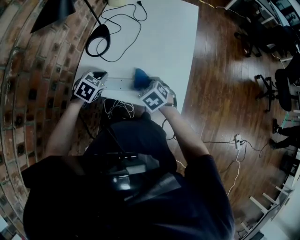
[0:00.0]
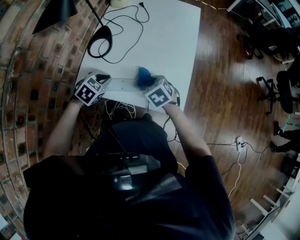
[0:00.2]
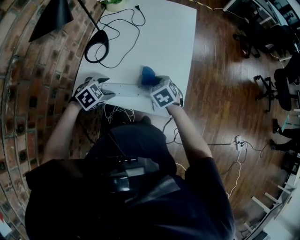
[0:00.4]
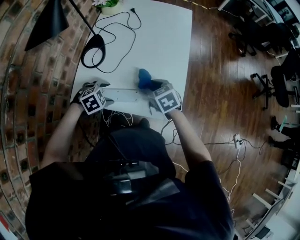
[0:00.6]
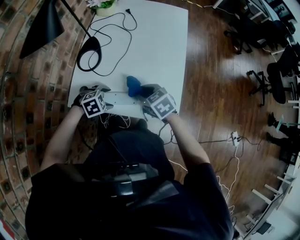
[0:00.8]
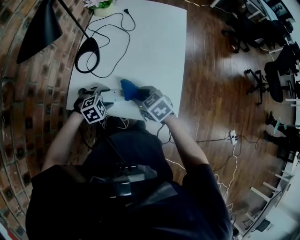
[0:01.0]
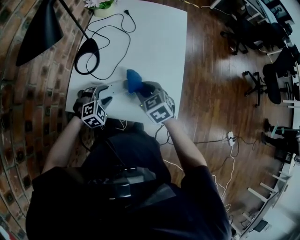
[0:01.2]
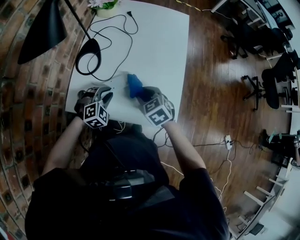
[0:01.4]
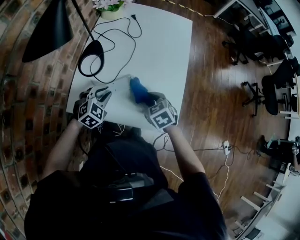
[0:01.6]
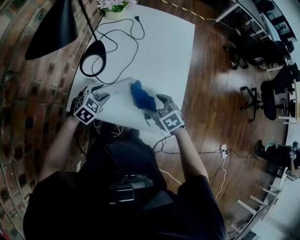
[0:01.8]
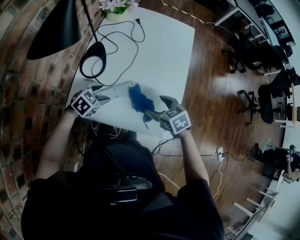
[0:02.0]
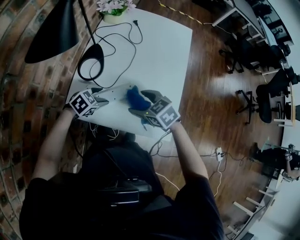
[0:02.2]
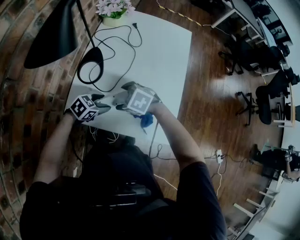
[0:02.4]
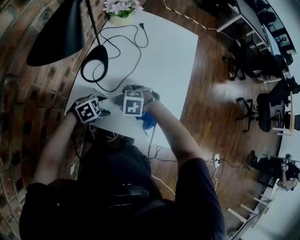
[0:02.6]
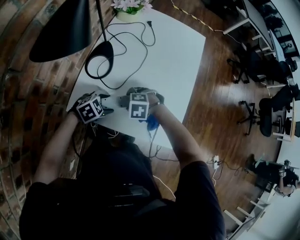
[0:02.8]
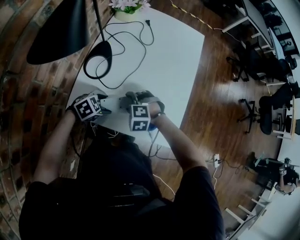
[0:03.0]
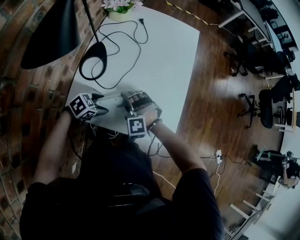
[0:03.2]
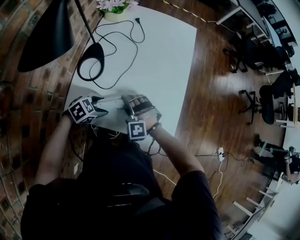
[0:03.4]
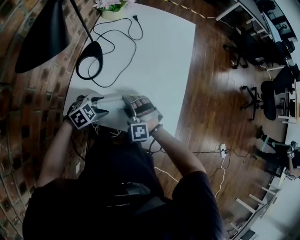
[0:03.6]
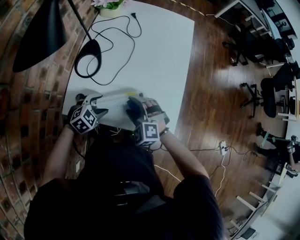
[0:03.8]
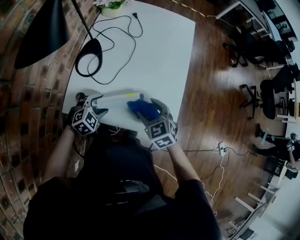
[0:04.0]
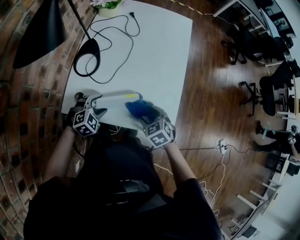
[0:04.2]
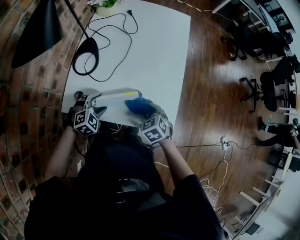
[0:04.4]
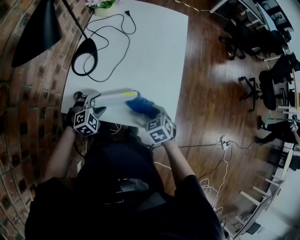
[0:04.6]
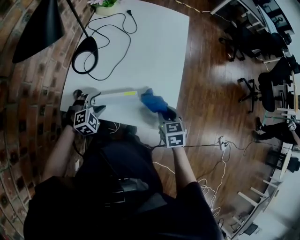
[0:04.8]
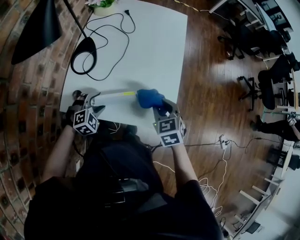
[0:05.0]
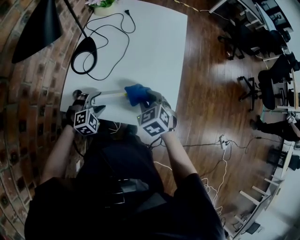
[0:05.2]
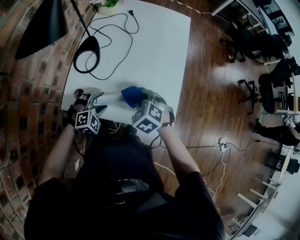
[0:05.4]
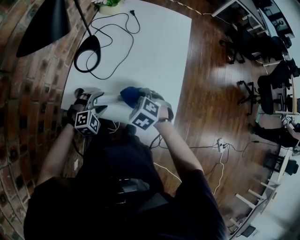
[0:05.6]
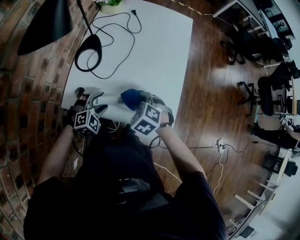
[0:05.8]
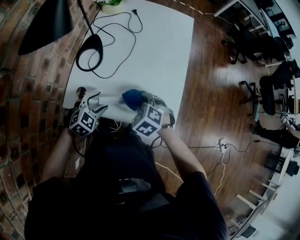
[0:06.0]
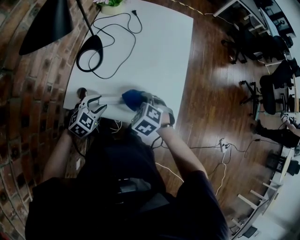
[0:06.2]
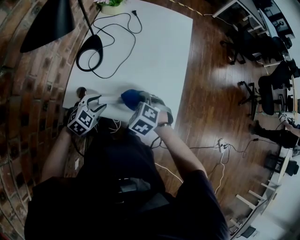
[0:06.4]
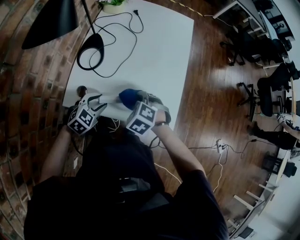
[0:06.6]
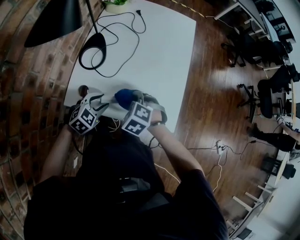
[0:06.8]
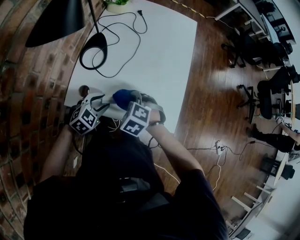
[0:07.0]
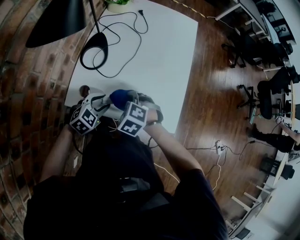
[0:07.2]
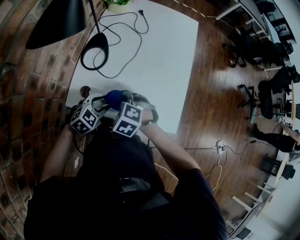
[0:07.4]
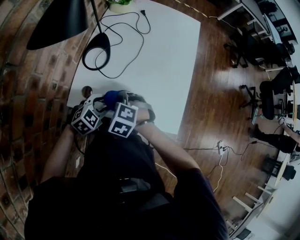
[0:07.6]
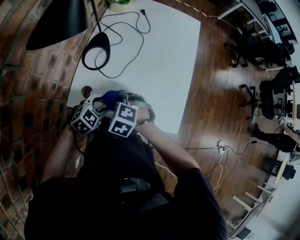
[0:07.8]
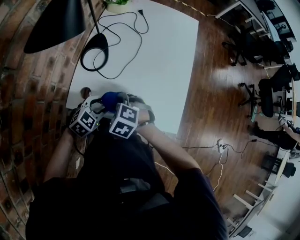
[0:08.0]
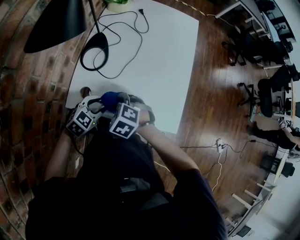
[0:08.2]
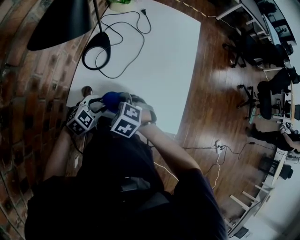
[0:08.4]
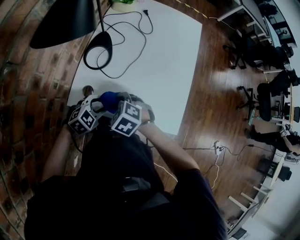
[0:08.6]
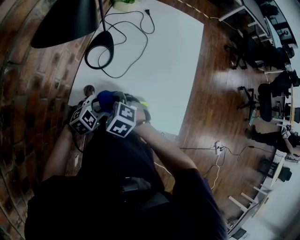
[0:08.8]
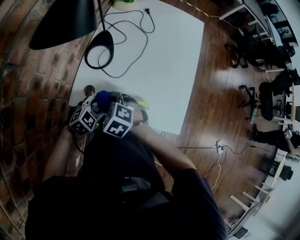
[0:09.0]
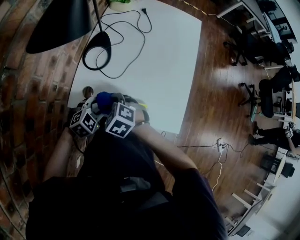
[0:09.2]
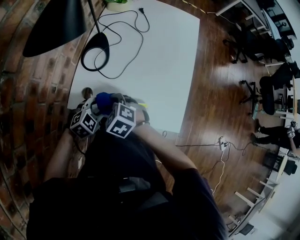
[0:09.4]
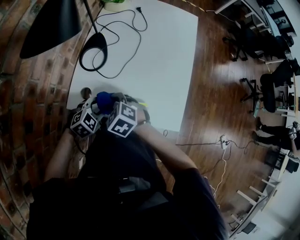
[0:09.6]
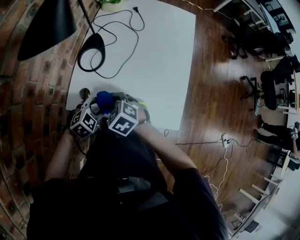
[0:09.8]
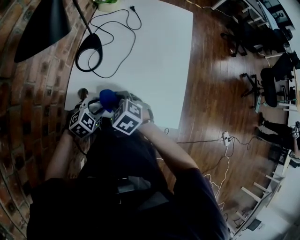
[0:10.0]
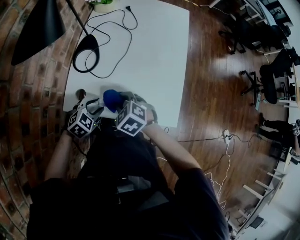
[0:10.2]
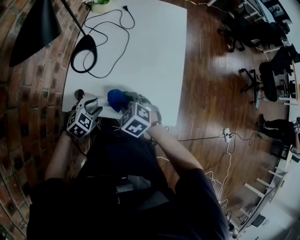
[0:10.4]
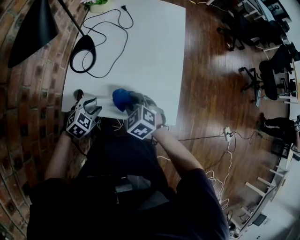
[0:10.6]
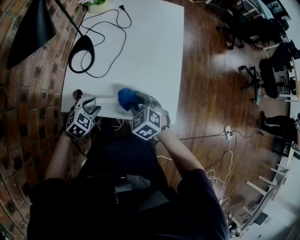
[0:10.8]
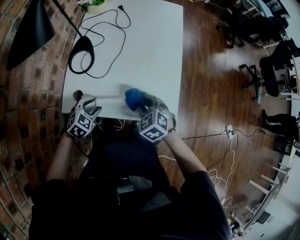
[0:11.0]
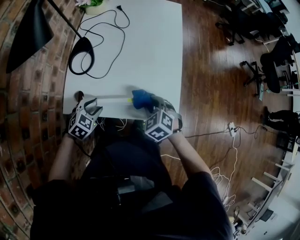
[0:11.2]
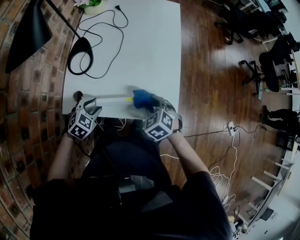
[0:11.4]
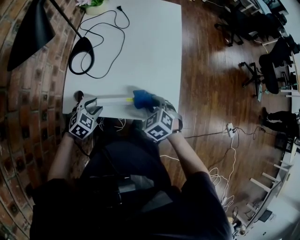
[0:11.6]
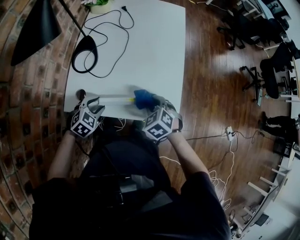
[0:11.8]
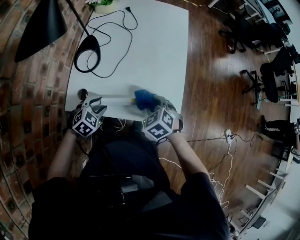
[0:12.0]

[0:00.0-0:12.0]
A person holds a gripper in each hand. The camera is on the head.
0:00.0 to 0:01.6: The left gripper turns by about 20 degrees, and opens, then closes again.
0:01.6 to 0:03.0: The left gripper moves approximately 5 cm, swivels roughly 30 degrees, and opens its fingers. The right gripper ends up approximately 10 cm from where it was, and rolls counterclockwise, seen from behind, by approximately 60 degrees.
0:03.0 to 0:04.4: The right gripper goes upward and returns, roughly 10 cm each way, and rotates around the line of its fingers by approximately 60 degrees, clockwise from behind. The left gripper rotates approximately 30 degrees.
0:04.4 to 0:06.0: The right gripper travels upward and to the left by approximately 10 cm, and rotates some 20 degrees.
0:06.0 to 0:07.6: The right gripper travels to the left by about 10 cm.
0:07.6 to 0:09.0: The right gripper shifts approximately 5 cm to the left.
0:09.0 to 0:10.4: The right gripper moves to the right, about 10 cm.
0:10.4 to 0:12.0: The right gripper goes roughly 10 cm to the right.

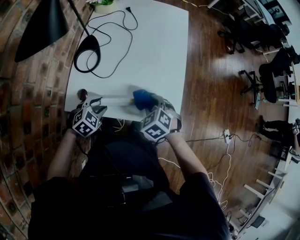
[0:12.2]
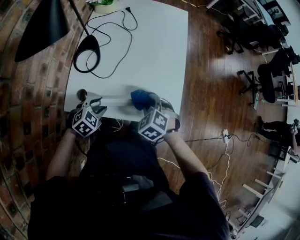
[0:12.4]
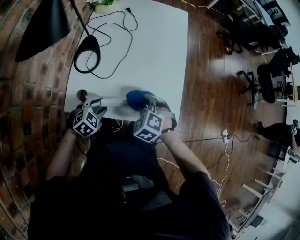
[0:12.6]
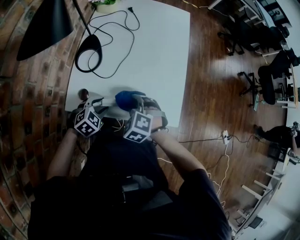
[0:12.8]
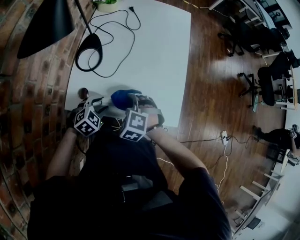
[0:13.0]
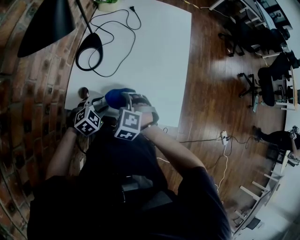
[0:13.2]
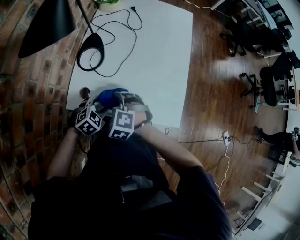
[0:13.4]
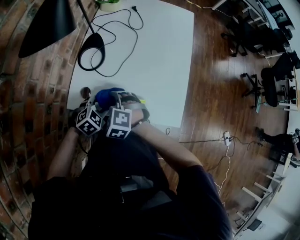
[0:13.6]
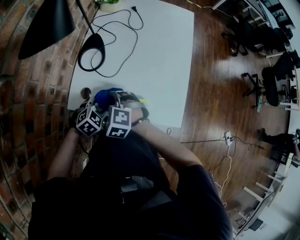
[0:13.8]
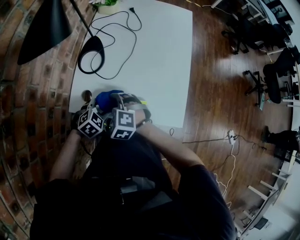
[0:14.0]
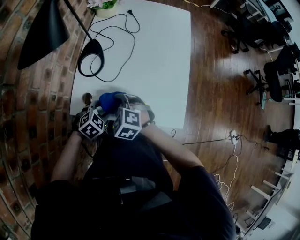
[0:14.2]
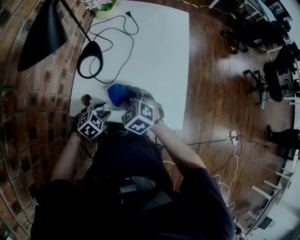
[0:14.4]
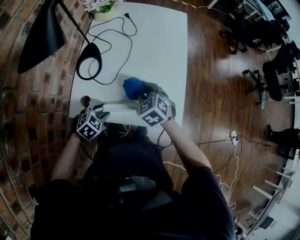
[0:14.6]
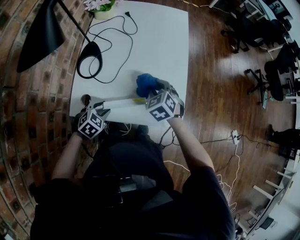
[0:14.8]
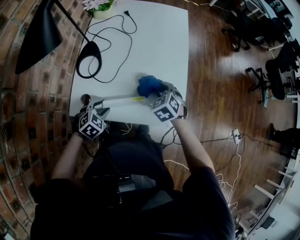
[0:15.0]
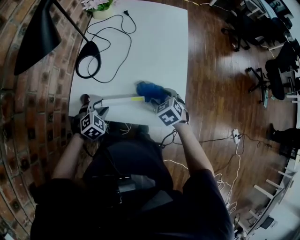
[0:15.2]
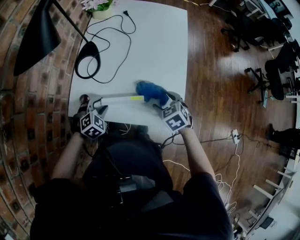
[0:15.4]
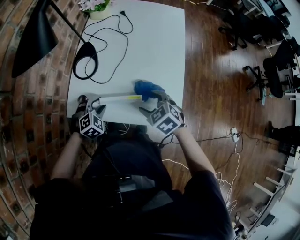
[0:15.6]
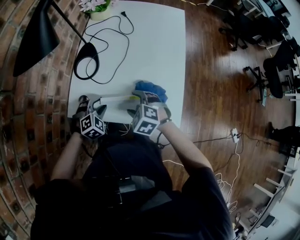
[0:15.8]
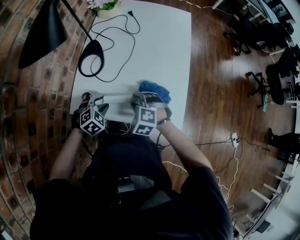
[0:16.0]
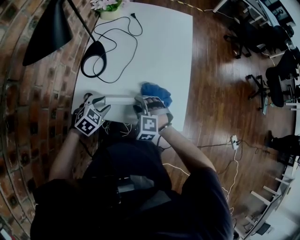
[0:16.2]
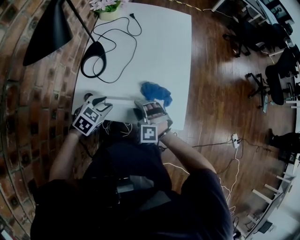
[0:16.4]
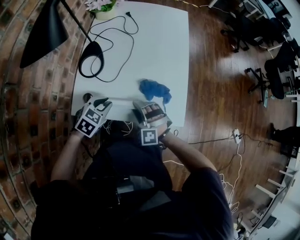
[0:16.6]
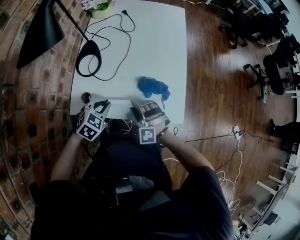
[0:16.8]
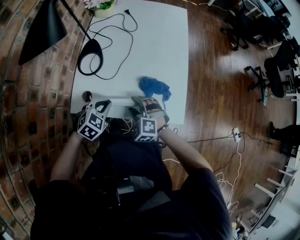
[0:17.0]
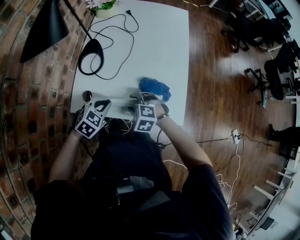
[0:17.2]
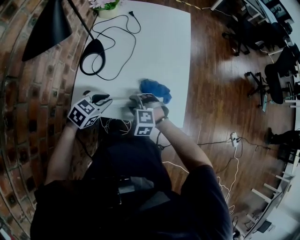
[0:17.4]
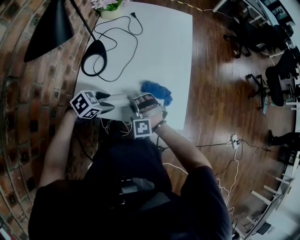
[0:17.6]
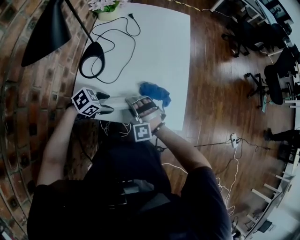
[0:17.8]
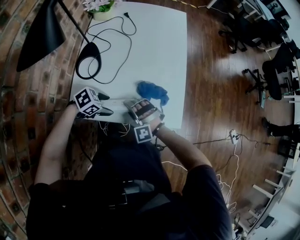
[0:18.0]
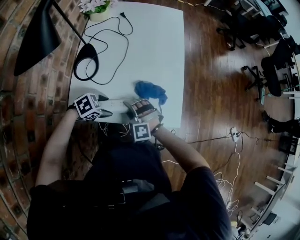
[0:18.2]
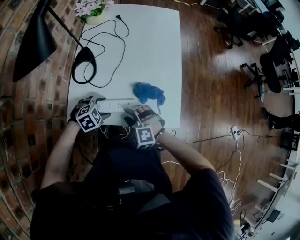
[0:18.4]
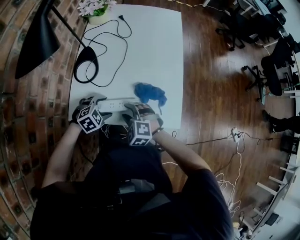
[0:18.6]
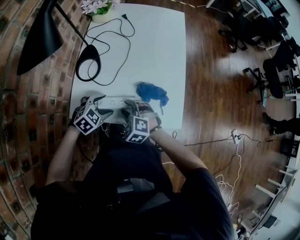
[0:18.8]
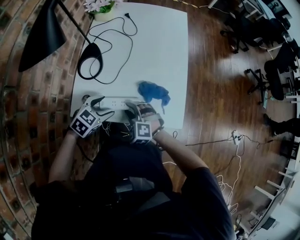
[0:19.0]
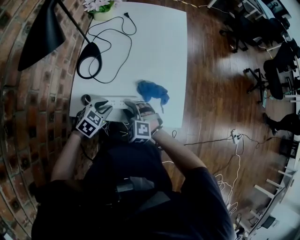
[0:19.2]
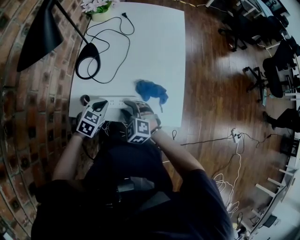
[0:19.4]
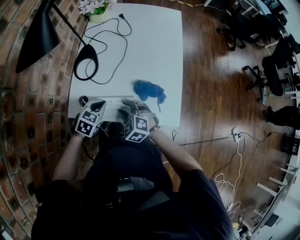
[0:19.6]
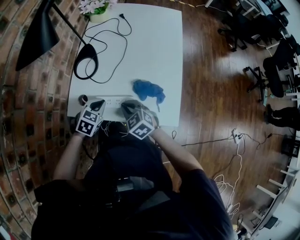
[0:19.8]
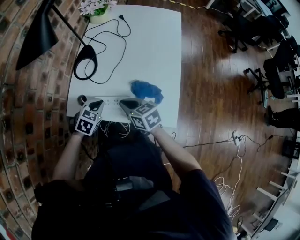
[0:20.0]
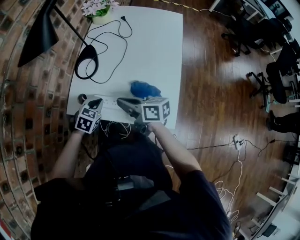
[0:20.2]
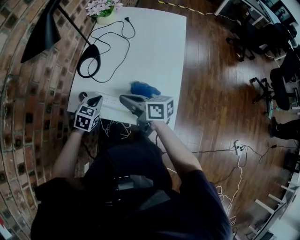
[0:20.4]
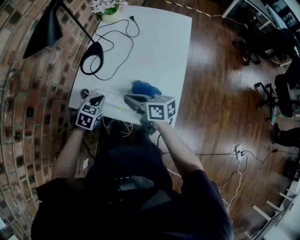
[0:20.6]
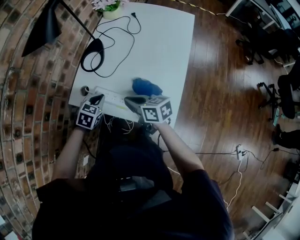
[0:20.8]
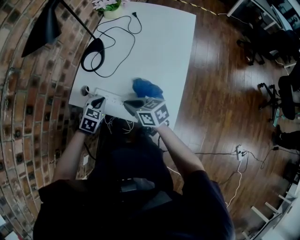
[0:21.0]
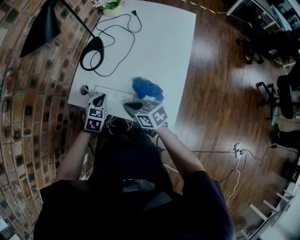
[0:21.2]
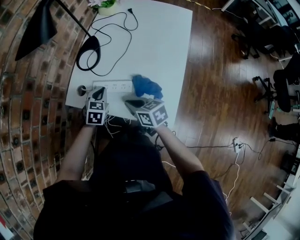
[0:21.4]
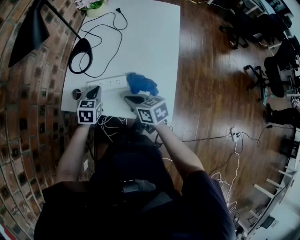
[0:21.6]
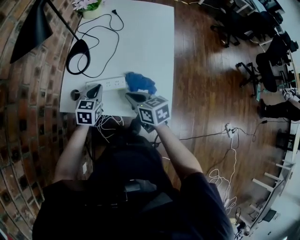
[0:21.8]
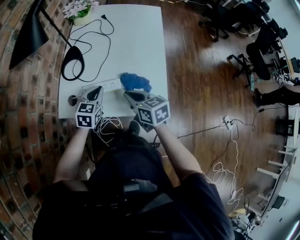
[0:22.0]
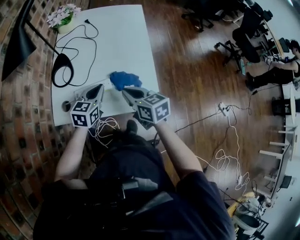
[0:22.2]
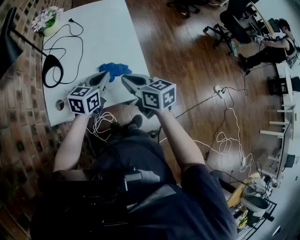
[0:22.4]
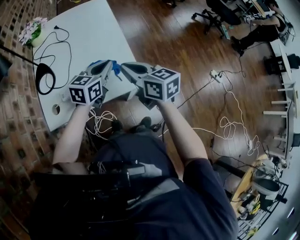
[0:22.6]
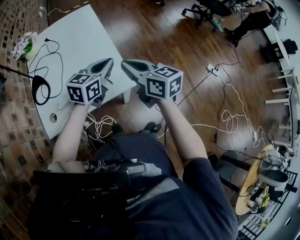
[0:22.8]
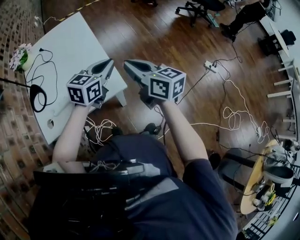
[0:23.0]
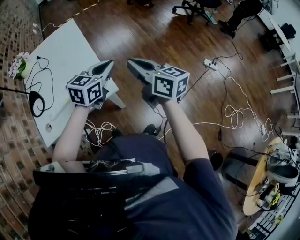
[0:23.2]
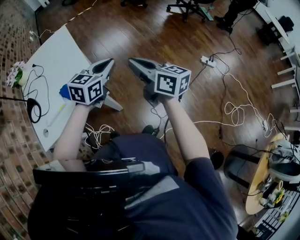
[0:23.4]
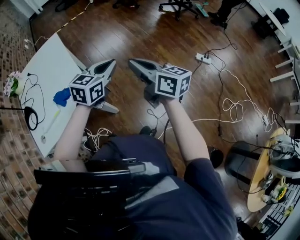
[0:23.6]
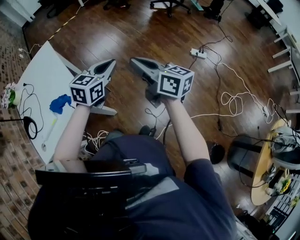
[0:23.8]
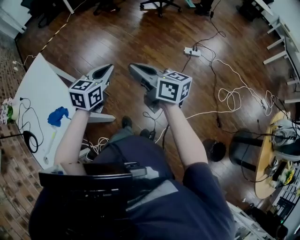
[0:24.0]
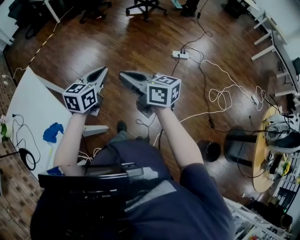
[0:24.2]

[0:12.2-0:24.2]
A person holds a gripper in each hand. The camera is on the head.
0:12.2 to 0:13.8: The right gripper goes roughly 20 cm to the left, and changes its angle by about 30 degrees.
0:13.8 to 0:15.2: The right gripper goes roughly 25 cm to the right, swivels approximately 40 degrees, and opens.
0:15.2 to 0:16.6: The left gripper shifts roughly 5 cm upward, while the right gripper ends up roughly 15 cm from where it was, and twists roughly 50 degrees counterclockwise, seen from behind.
0:16.6 to 0:18.2: The left gripper is displaced downward by about 5 cm, swivels about 30 degrees, and opens its fingers.
0:18.2 to 0:19.8: The left gripper turns by about 40 degrees, and closes up; the right gripper rotates around the line of its fingers by about 50 degrees, clockwise from behind, and closes its fingers.
0:19.8 to 0:21.2: The right gripper moves approximately 10 cm upward and comes back, and rotates roughly 40 degrees; the left gripper swivels about 20 degrees.
0:21.2 to 0:22.6: The left gripper moves some 25 cm, and rotates about 50 degrees, while the right gripper travels upward by some 15 cm, and changes its angle by roughly 50 degrees.
0:22.6 to 0:24.2: The two grippers travel together, about 40 cm. The right gripper turns by roughly 30 degrees. Meanwhile the left gripper swivels approximately 30 degrees.
